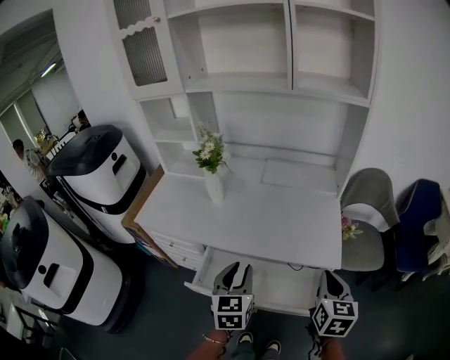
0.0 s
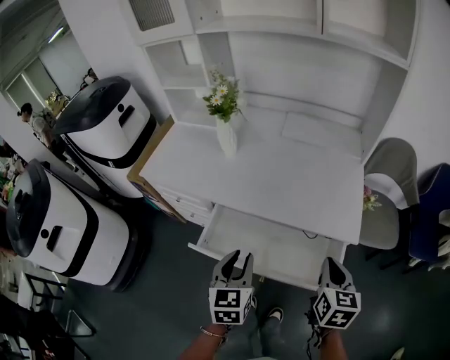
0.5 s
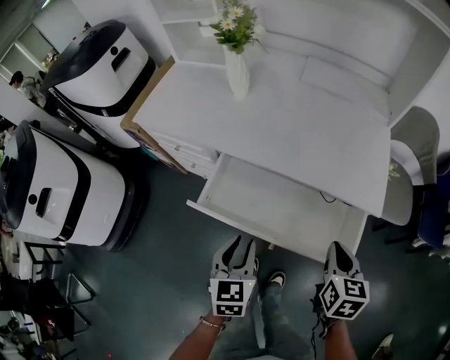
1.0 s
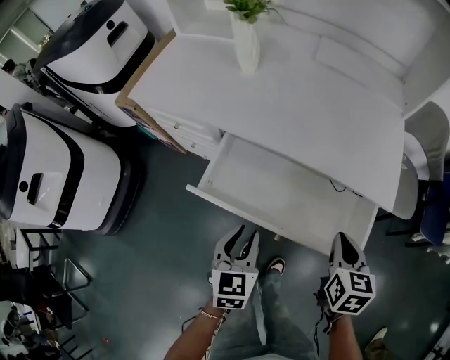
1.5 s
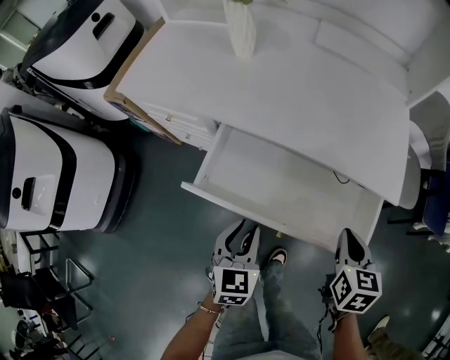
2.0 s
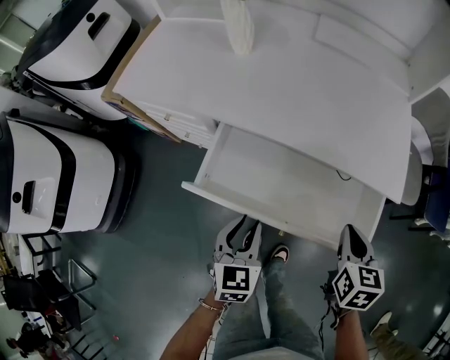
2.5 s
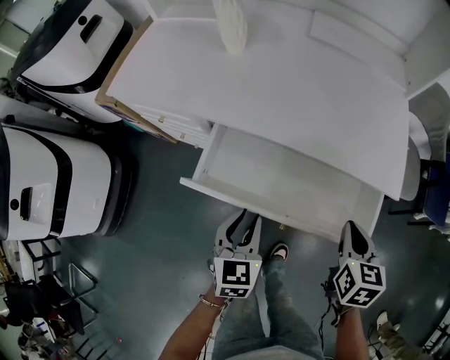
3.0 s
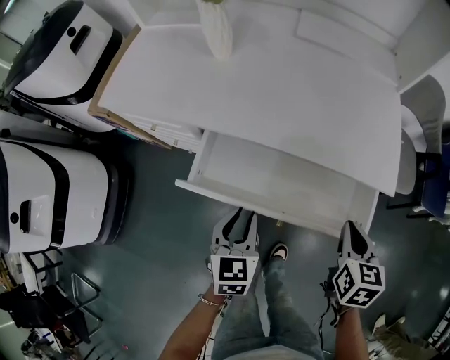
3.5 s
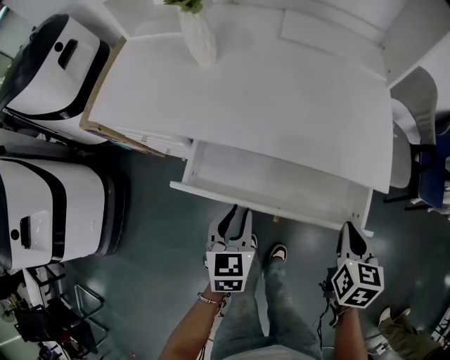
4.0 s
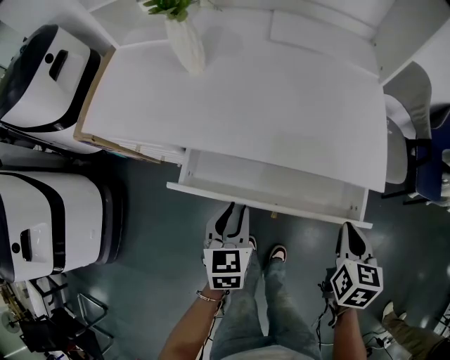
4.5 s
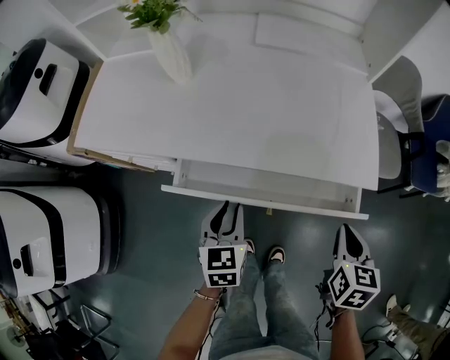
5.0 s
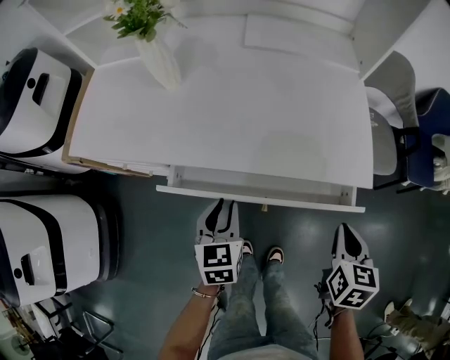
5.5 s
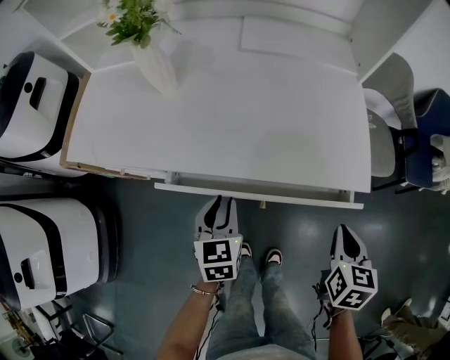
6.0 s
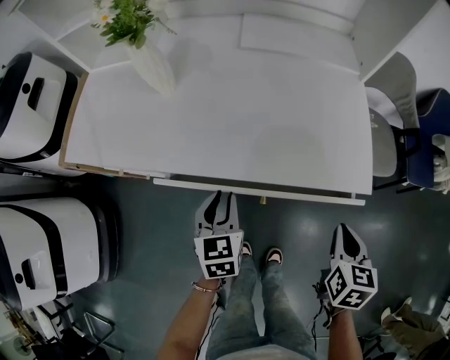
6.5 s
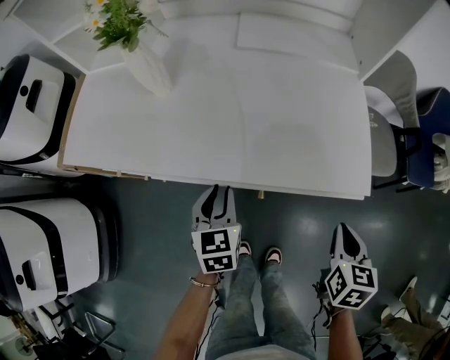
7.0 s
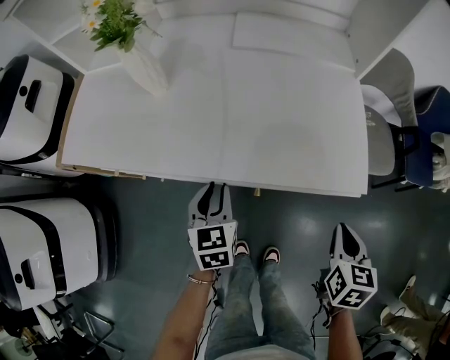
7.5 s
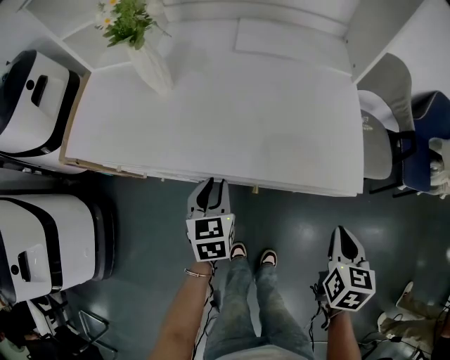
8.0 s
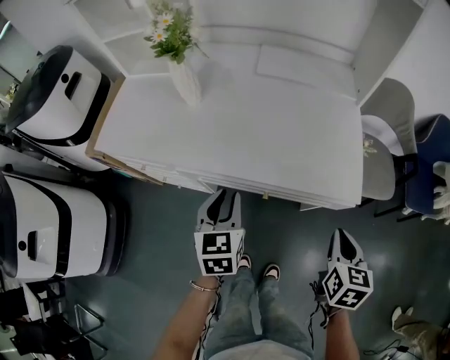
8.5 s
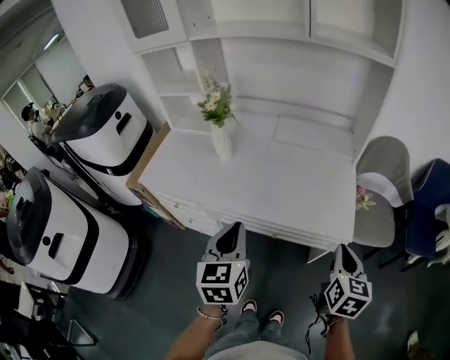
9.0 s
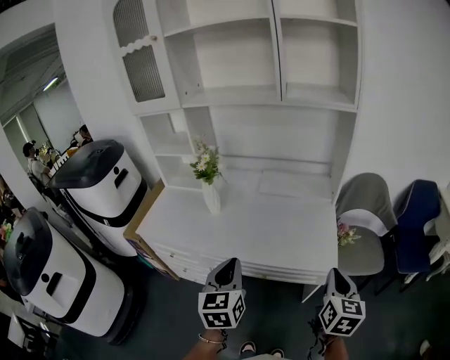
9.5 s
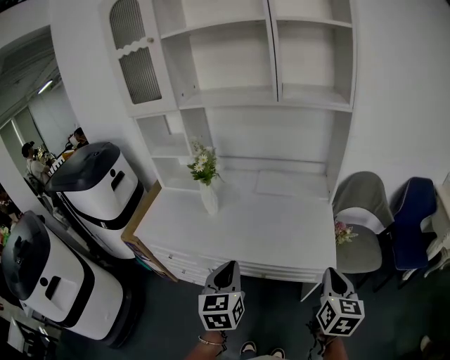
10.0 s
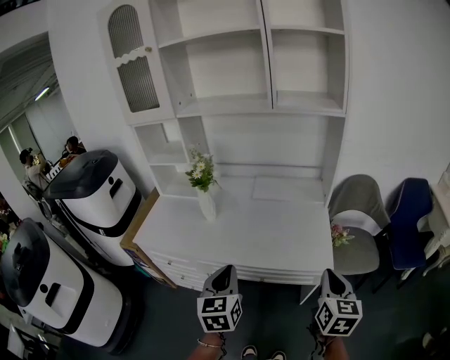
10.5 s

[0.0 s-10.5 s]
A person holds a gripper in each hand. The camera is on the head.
0.0 to 2.0 s: The right gripper travels downward by approximately 20 cm, and rotates approximately 20 degrees, while the left gripper moves downward and backward, approximately 25 cm.
2.0 to 4.0 s: The left gripper travels forward by about 5 cm.
4.0 to 6.5 s: The left gripper shifts roughly 10 cm forward.
6.5 to 8.5 s: The left gripper shifts about 10 cm upward.
8.5 to 10.5 s: The grippers both shift upward by about 15 cm. The right gripper rotates about 20 degrees; the left gripper closes its fingers.

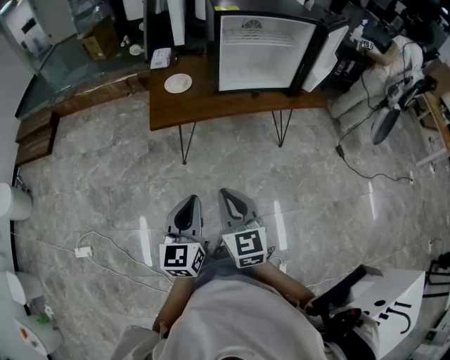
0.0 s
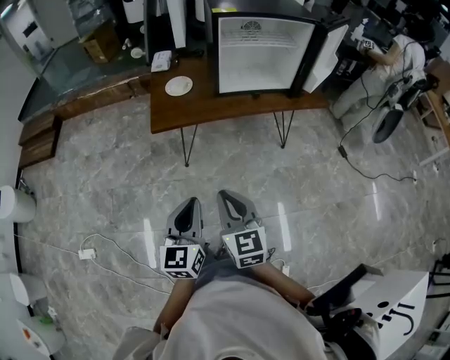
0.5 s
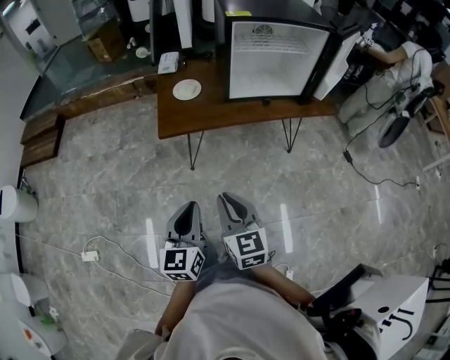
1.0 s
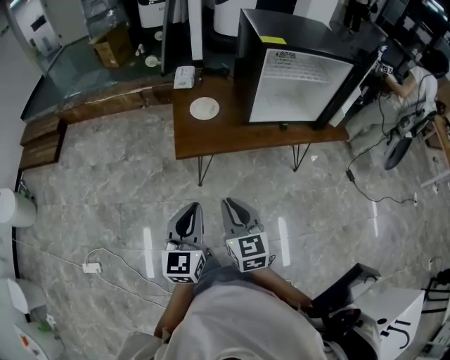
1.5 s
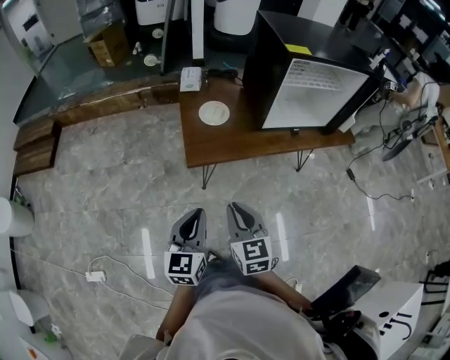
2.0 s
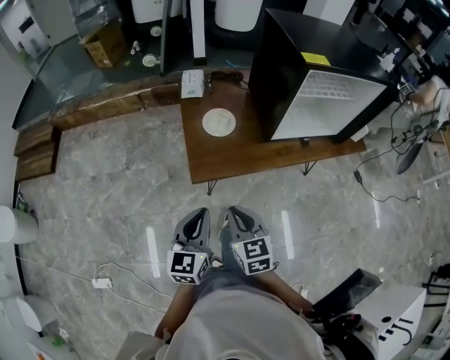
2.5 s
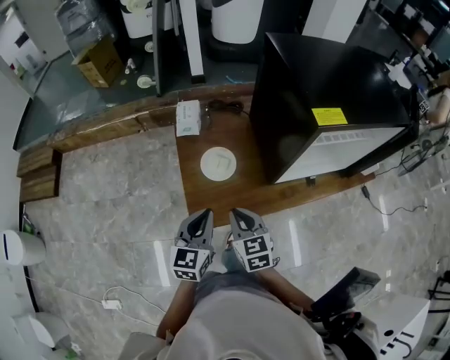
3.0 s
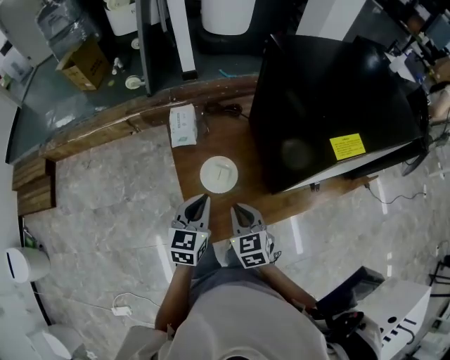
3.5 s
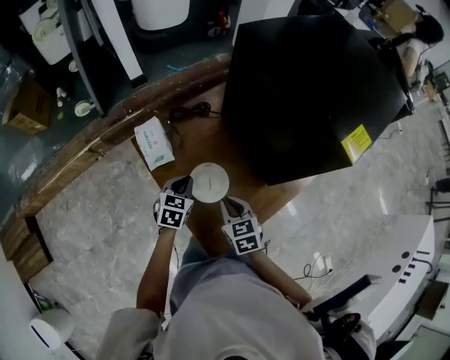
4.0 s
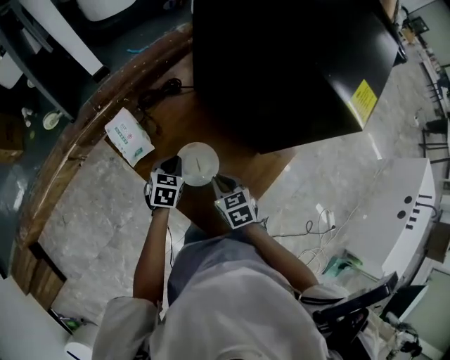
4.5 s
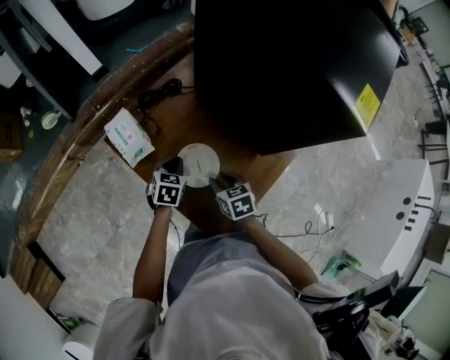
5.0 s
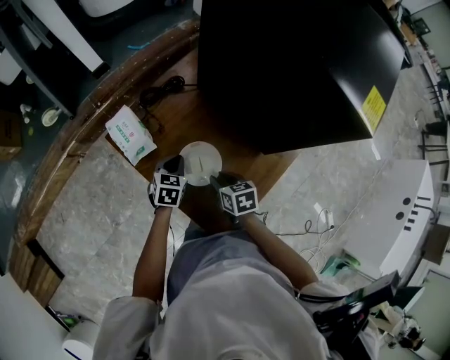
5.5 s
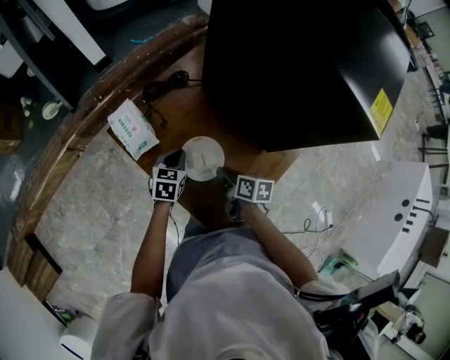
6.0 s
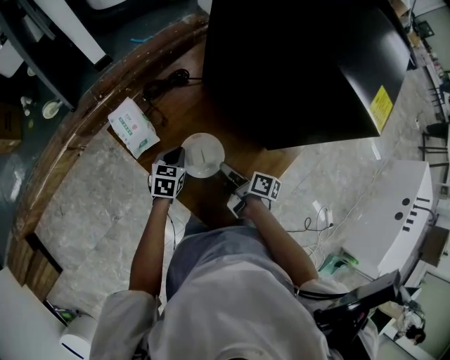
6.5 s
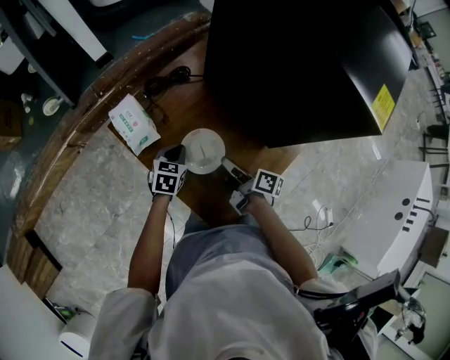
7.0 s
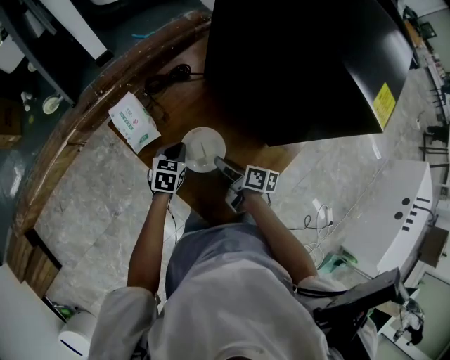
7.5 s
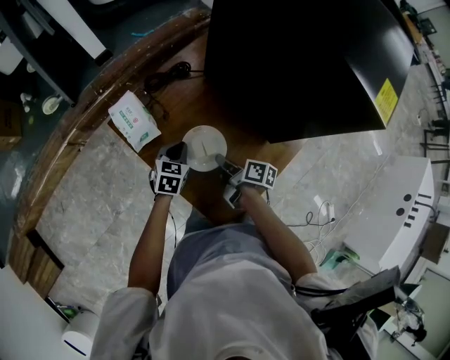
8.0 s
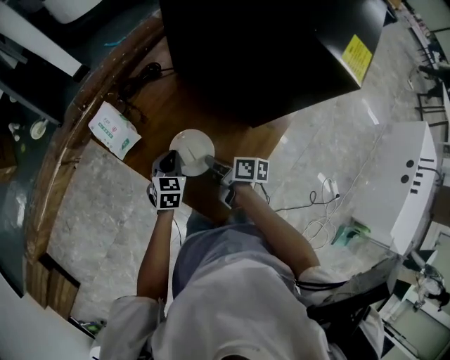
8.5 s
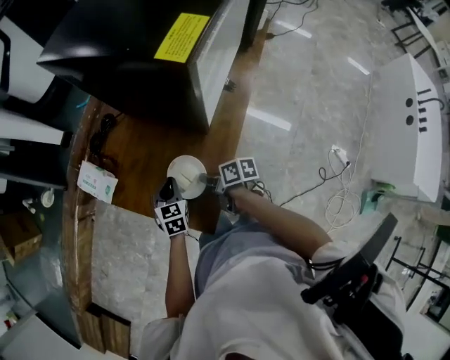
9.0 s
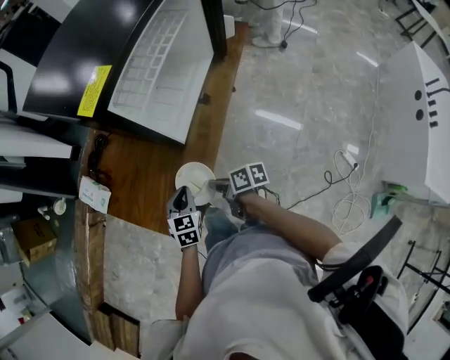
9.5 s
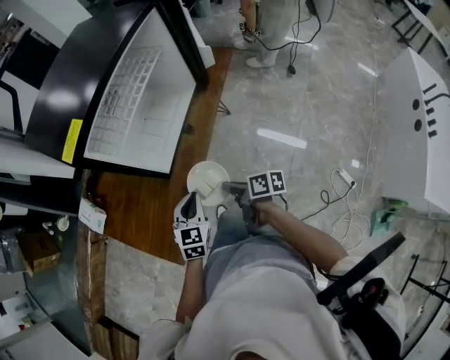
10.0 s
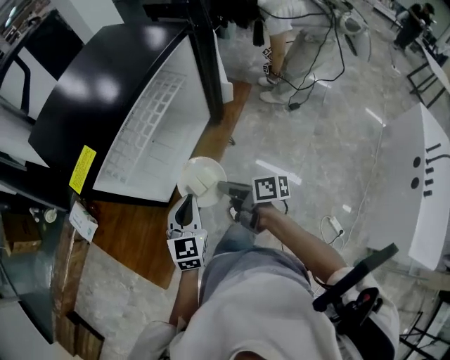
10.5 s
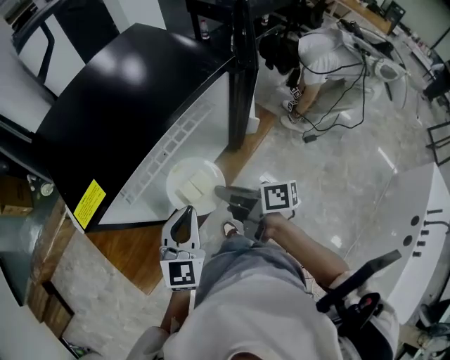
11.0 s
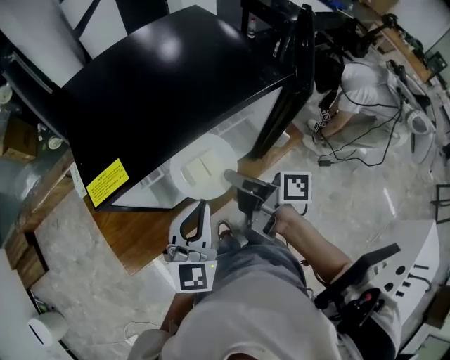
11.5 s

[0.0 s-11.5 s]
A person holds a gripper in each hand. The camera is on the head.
0.0 to 2.0 s: Both grippers move forward and to the left, some 40 cm.
2.0 to 4.0 s: Both grippers are carried approximately 80 cm. The right gripper changes its angle by about 30 degrees. The left gripper tips its fingers downward by roughly 30 degrees.
4.0 to 6.0 s: Both grippers travel together downward, about 10 cm. The right gripper rolls clockwise, seen from behind, by approximately 50 degrees.
7.5 to 9.5 s: Both grippers are carried to the right and backward, some 50 cm. The right gripper closes its fingers.
9.5 to 11.5 s: The right gripper is displaced to the right, forward and upward by some 50 cm, and turns by about 30 degrees, while the left gripper travels to the right, upward and forward by roughly 50 cm, and points its fingers roughly 30 degrees further upward.

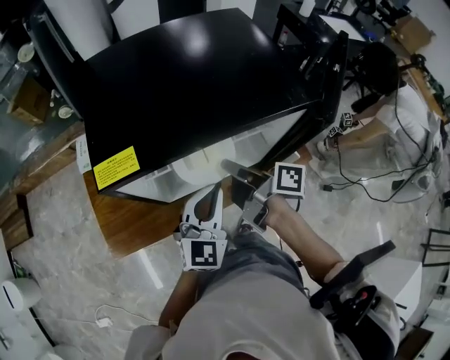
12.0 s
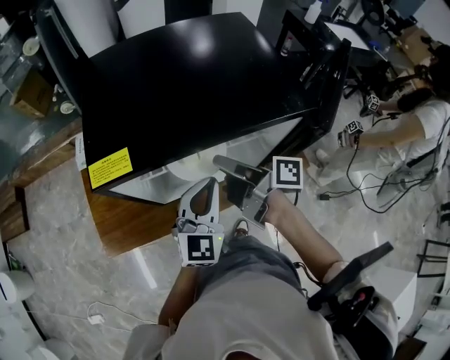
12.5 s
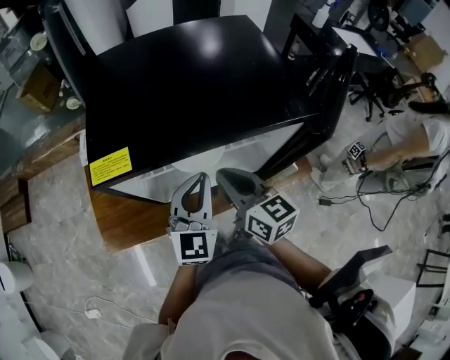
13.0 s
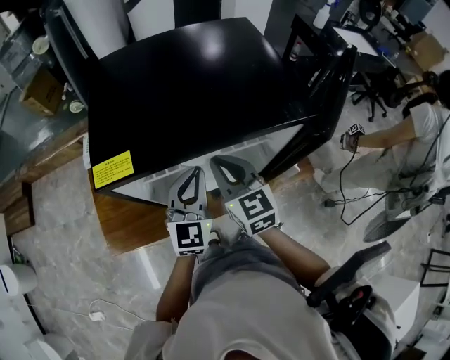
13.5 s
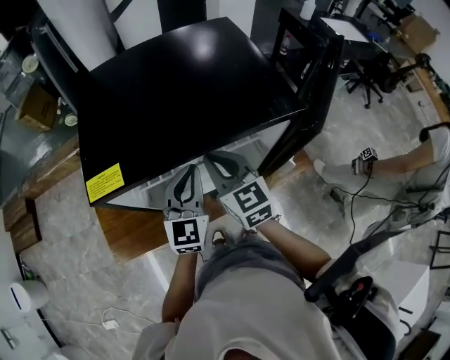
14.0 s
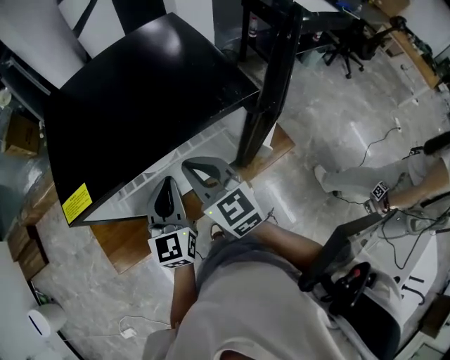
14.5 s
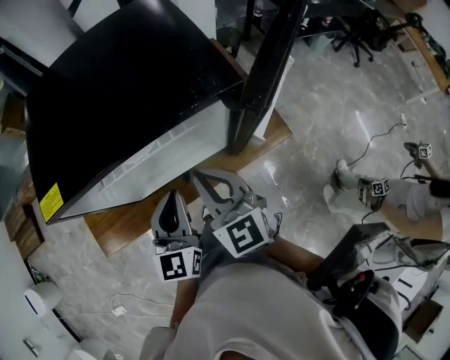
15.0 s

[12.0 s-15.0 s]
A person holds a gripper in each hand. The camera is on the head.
12.0 to 13.5 s: The right gripper rotates around the line of its fingers by about 80 degrees, counterclockwise from behind, and opens and closes again. The left gripper is displaced forward by roughly 5 cm.
13.5 to 15.0 s: Both grippers travel together to the right and backward, about 10 cm.

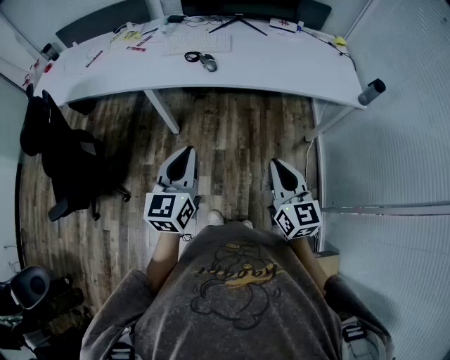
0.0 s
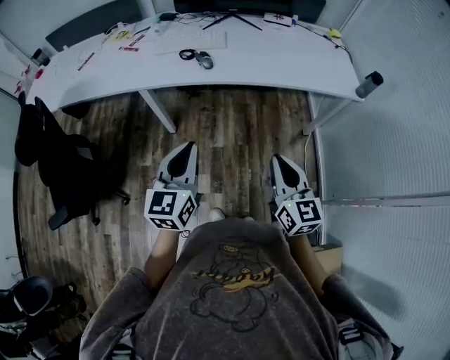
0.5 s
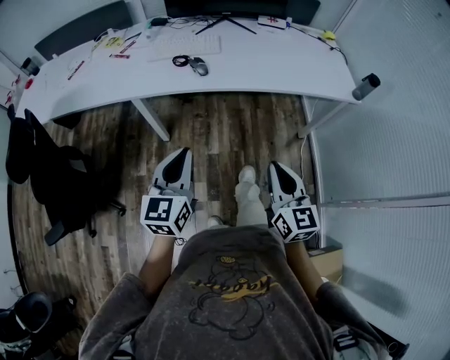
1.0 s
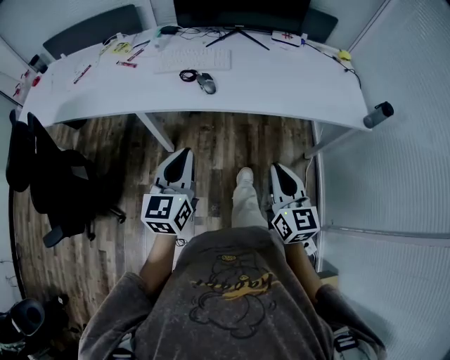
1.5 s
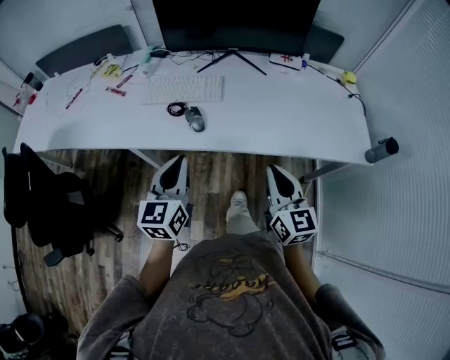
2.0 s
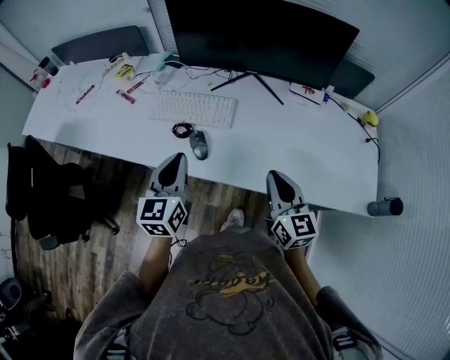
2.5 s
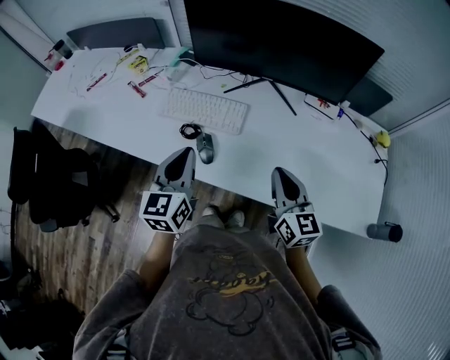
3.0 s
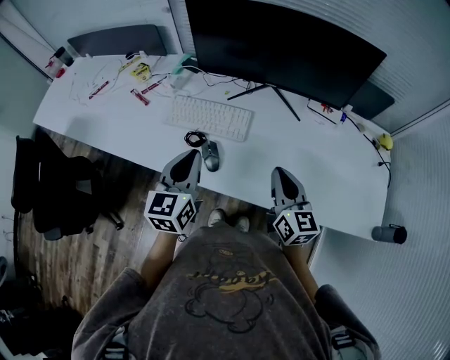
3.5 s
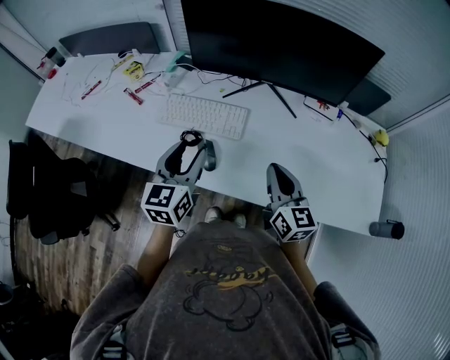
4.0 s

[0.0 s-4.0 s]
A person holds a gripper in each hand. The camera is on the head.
0.0 to 2.0 s: Both grippers travel together forward, about 30 cm.
2.0 to 4.0 s: The grippers both shift forward by approximately 20 cm. The left gripper opens its fingers.
